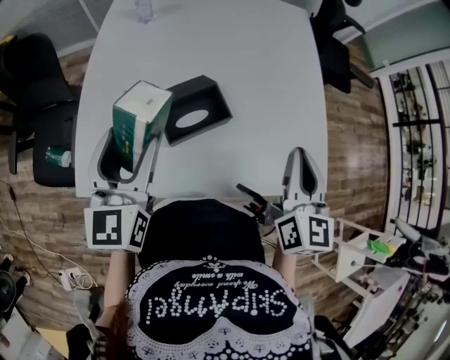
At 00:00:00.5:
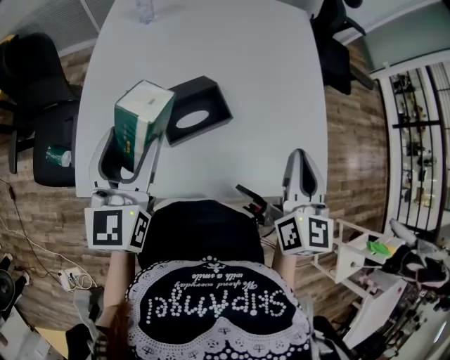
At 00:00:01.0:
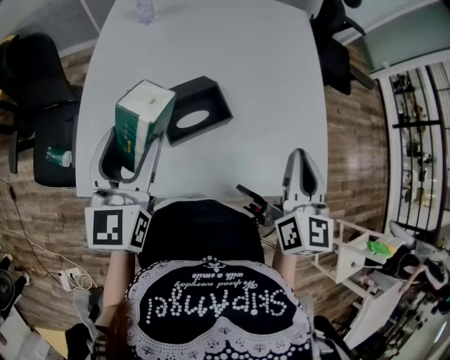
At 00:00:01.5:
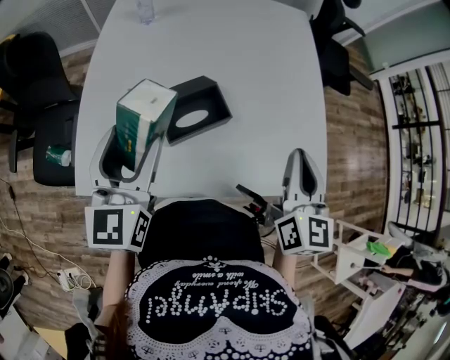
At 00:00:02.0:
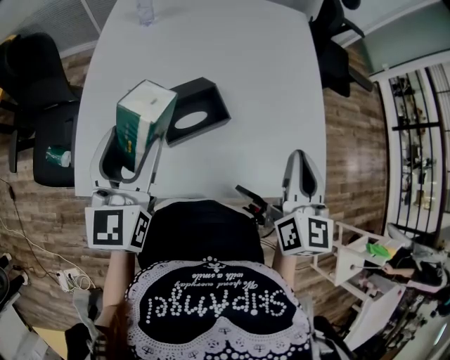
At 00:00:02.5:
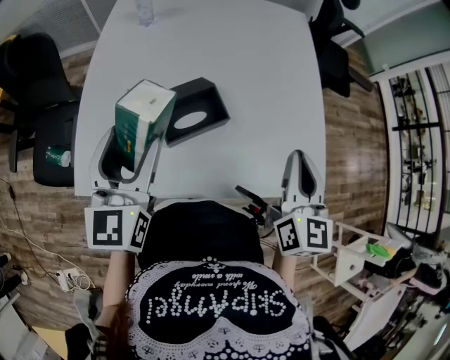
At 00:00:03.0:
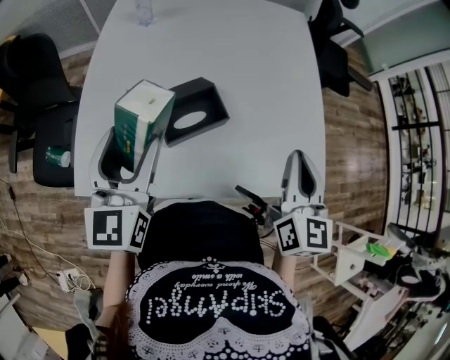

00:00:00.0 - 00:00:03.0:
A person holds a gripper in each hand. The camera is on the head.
00:00:00.0 - 00:00:03.0: Both grippers stay put.

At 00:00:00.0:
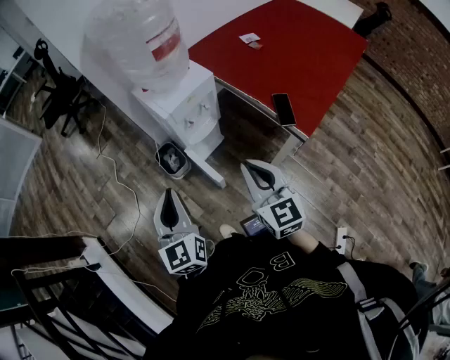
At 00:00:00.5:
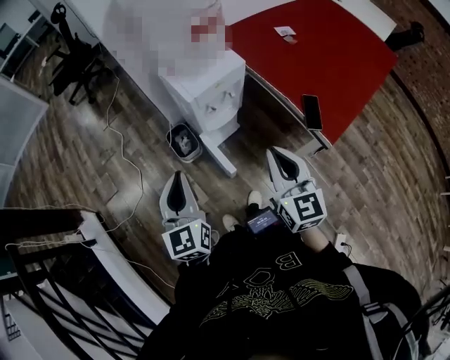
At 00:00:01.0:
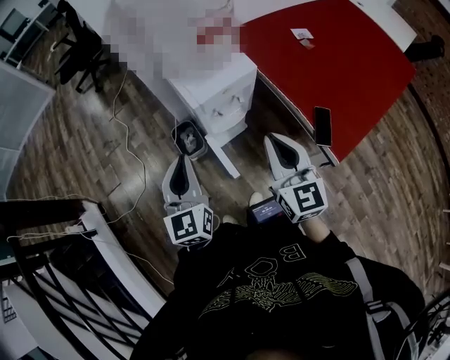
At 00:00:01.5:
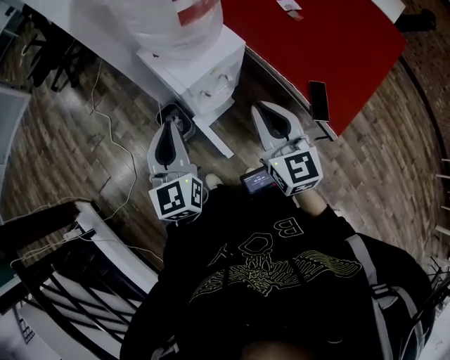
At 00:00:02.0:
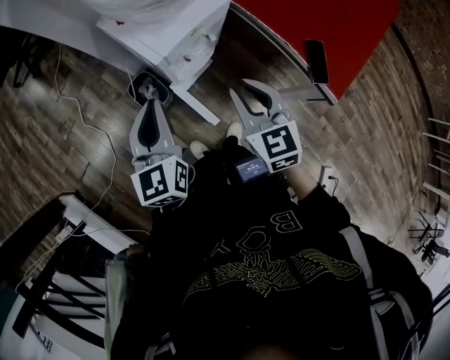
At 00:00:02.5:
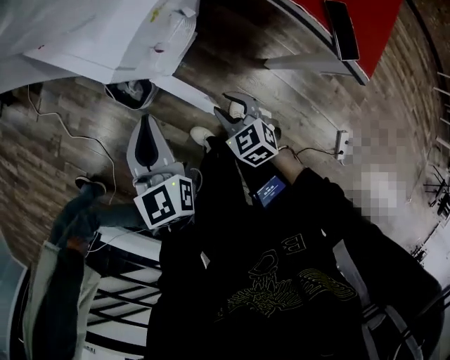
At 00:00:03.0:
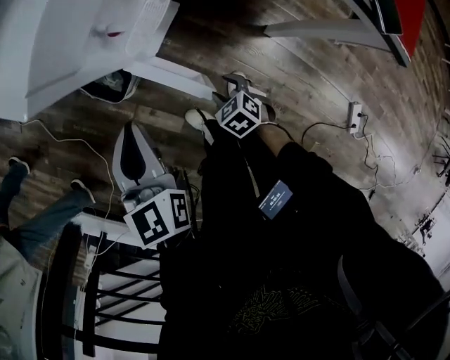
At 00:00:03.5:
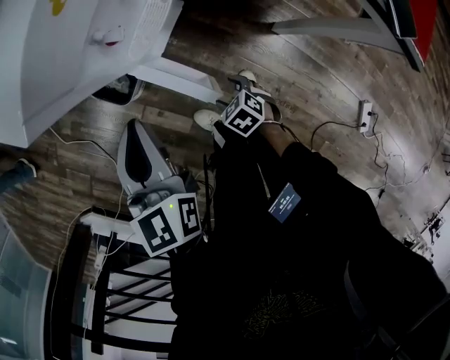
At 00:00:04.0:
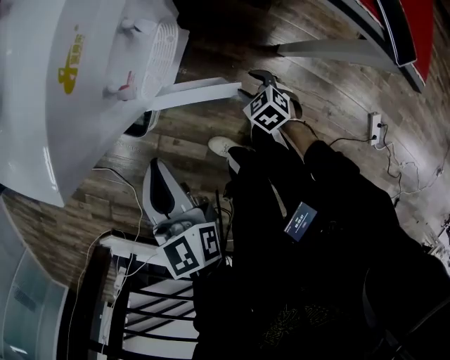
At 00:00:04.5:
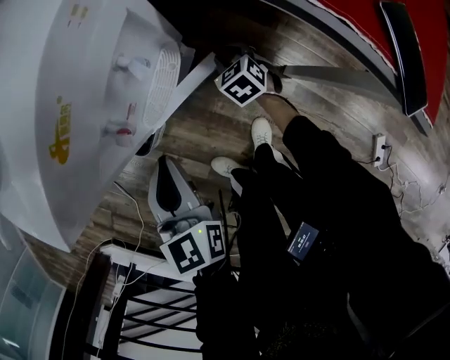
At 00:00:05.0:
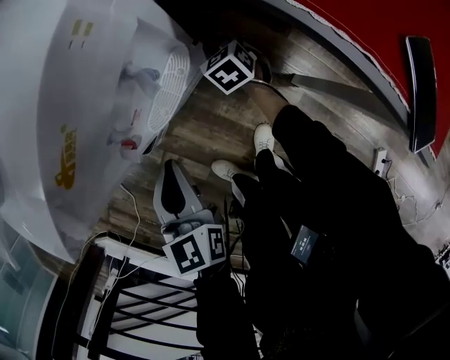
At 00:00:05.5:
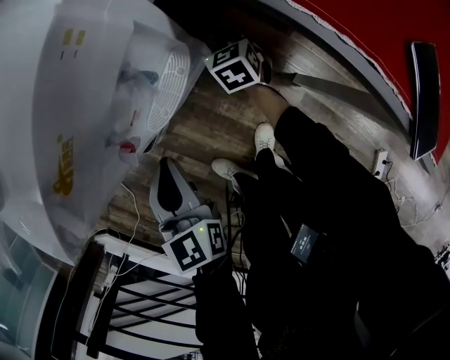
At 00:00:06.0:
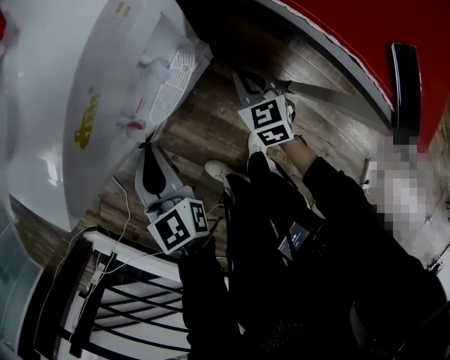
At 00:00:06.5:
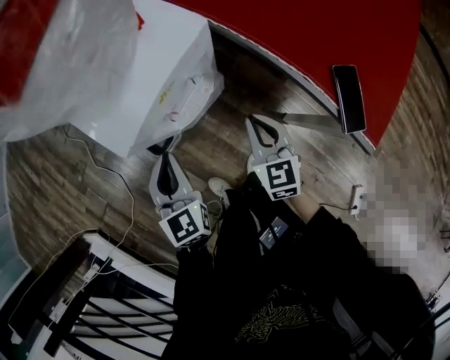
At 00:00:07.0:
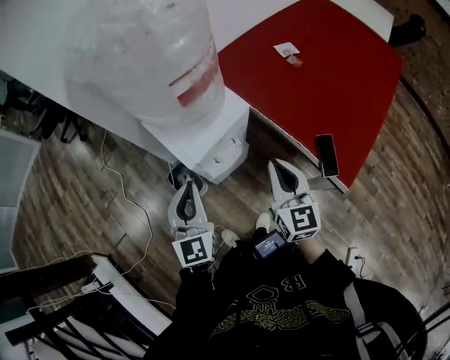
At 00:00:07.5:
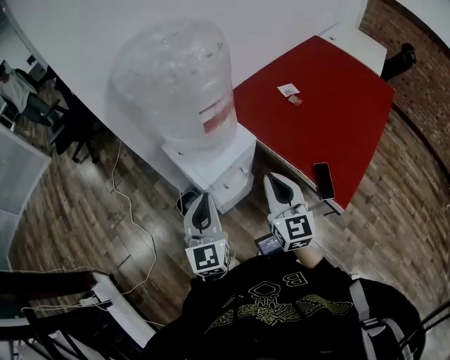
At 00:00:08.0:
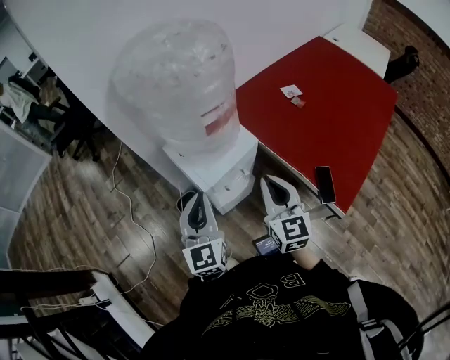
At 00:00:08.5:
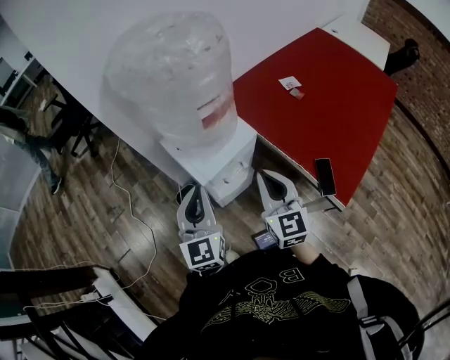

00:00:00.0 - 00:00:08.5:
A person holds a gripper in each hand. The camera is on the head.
00:00:00.0 - 00:00:02.0: The right gripper moves forward and downward, some 25 cm. The left gripper is displaced forward by roughly 25 cm.
00:00:02.0 - 00:00:04.0: The left gripper is displaced downward by about 25 cm, and turns by roughly 20 degrees; the right gripper travels downward by roughly 50 cm, points its fingers some 40 degrees further downward, and opens.
00:00:04.0 - 00:00:06.5: The right gripper heads upward, covering roughly 30 cm, tilts its fingers some 40 degrees upward, and closes. The left gripper goes about 10 cm upward.
00:00:06.5 - 00:00:08.5: The two grippers go some 30 cm upward. The right gripper swivels approximately 20 degrees, while the left gripper changes its angle by about 20 degrees.

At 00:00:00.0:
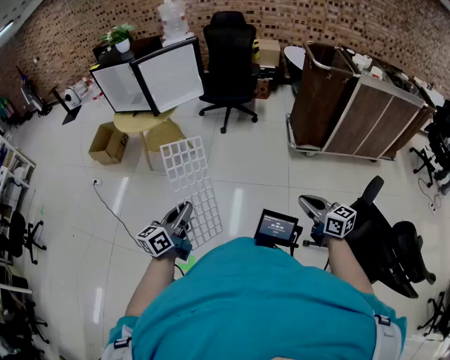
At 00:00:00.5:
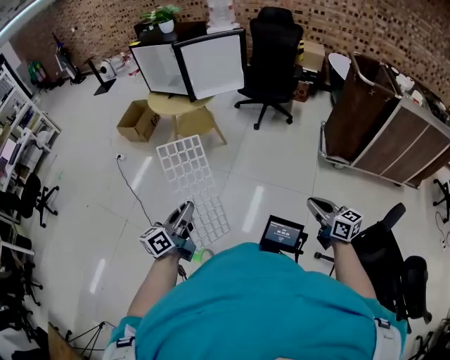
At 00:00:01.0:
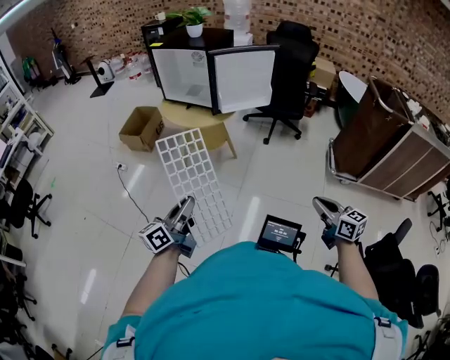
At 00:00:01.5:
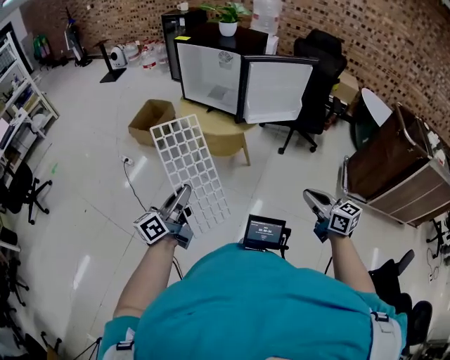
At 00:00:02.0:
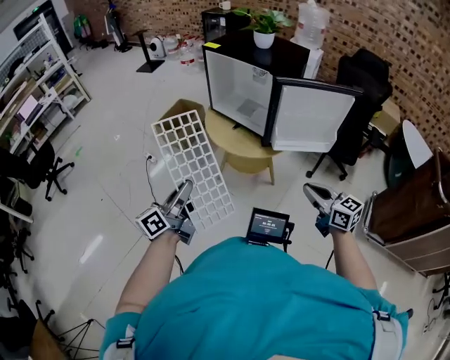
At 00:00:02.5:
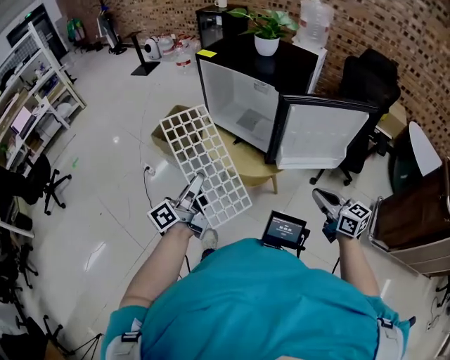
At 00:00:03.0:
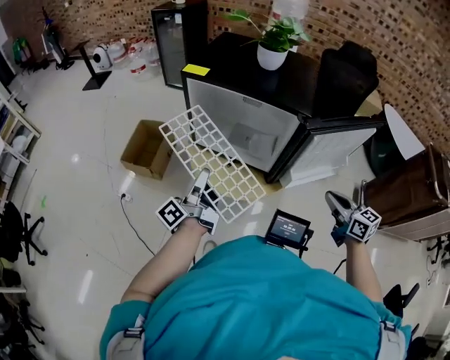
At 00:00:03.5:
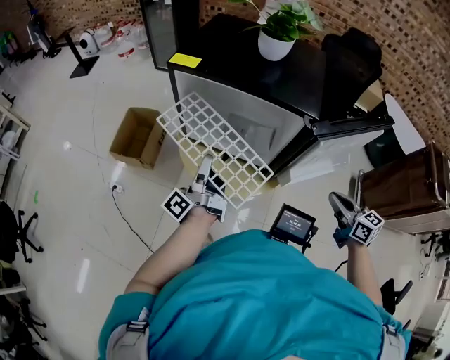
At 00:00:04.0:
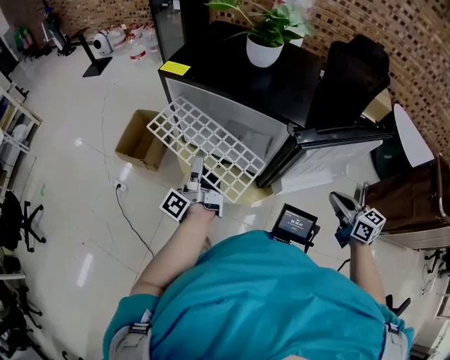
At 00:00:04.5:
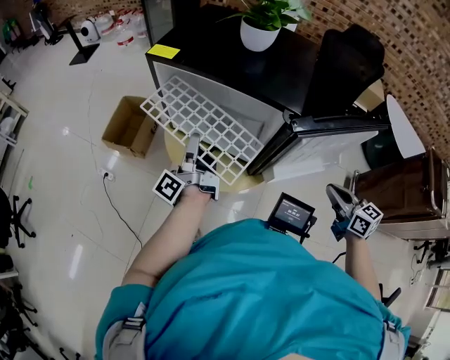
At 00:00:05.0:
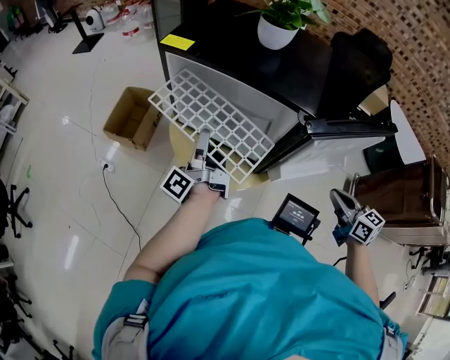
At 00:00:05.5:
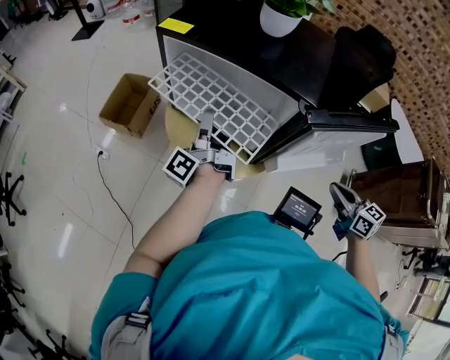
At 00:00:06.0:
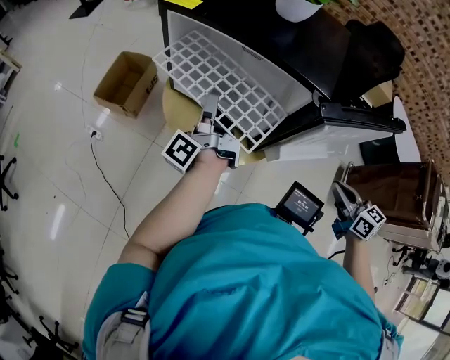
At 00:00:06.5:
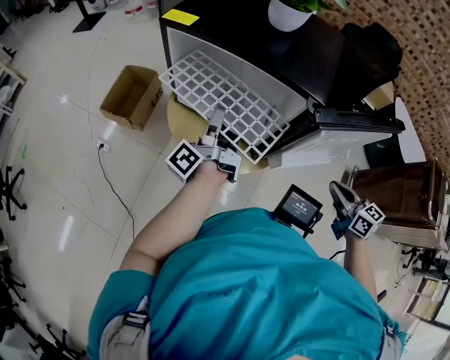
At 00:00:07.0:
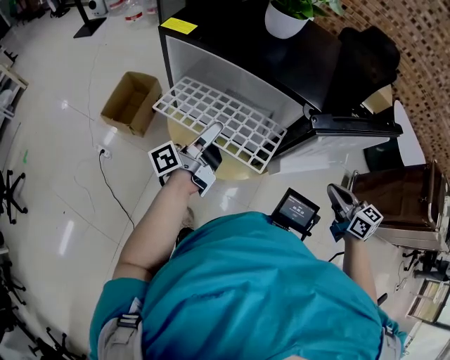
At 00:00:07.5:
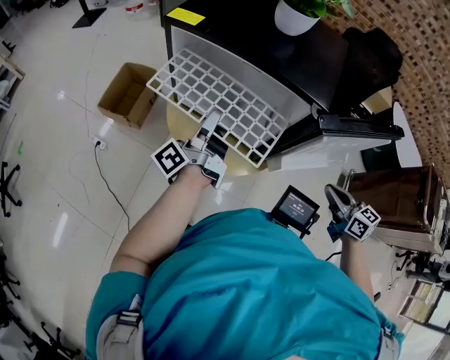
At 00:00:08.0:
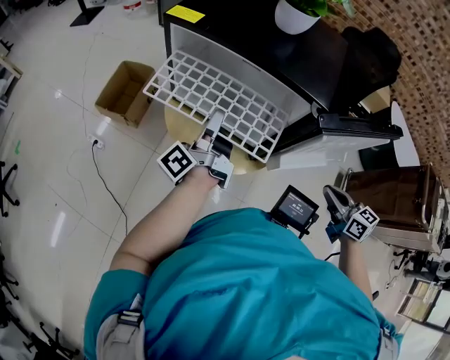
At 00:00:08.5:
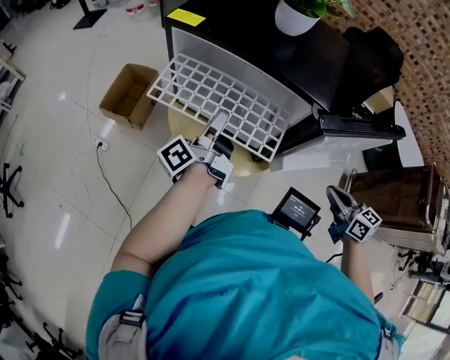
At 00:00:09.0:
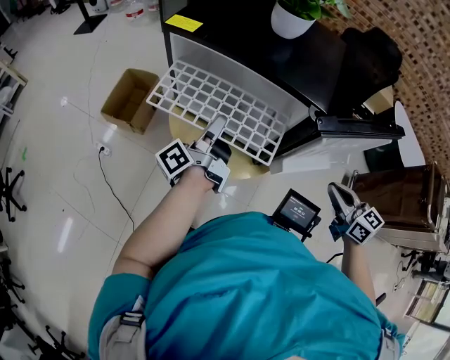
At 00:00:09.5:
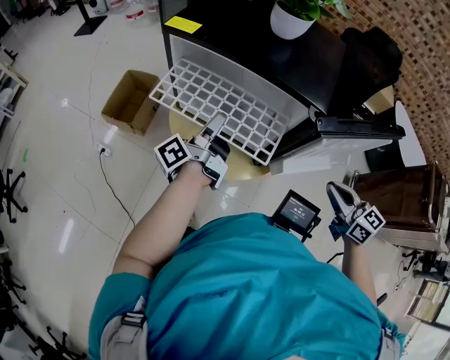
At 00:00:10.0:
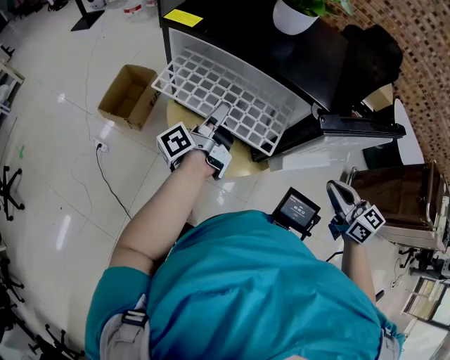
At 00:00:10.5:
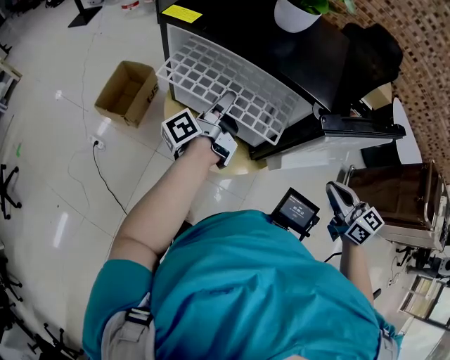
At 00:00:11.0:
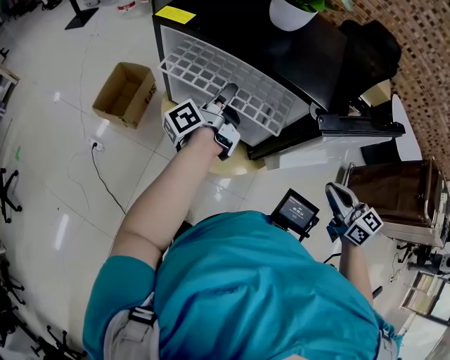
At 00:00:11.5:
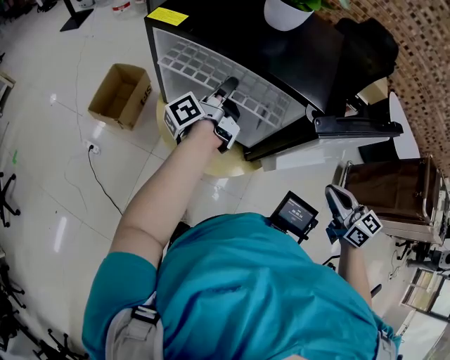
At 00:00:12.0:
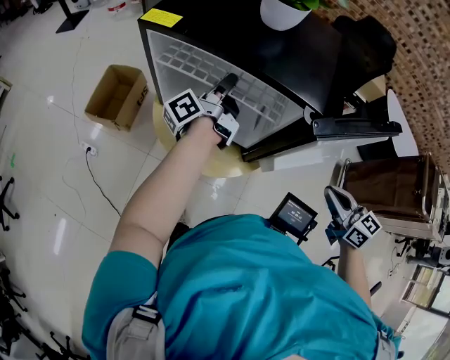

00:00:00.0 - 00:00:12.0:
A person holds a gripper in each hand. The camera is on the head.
00:00:00.0 - 00:00:02.0: Both grippers are carried forward and to the left, about 50 cm. The left gripper turns by roughly 30 degrees; the right gripper changes its angle by about 30 degrees.
00:00:02.0 - 00:00:04.0: The right gripper shifts some 25 cm forward, and rotates roughly 30 degrees. Meanwhile the left gripper moves forward, some 40 cm, and turns by roughly 30 degrees.
00:00:04.0 - 00:00:06.0: The right gripper goes about 5 cm downward. Meanwhile the left gripper moves roughly 5 cm.
00:00:08.0 - 00:00:10.0: The right gripper shifts some 5 cm upward, while the left gripper shifts by some 5 cm, and rotates approximately 20 degrees.
00:00:10.0 - 00:00:12.0: The left gripper is displaced forward and to the right by approximately 10 cm.

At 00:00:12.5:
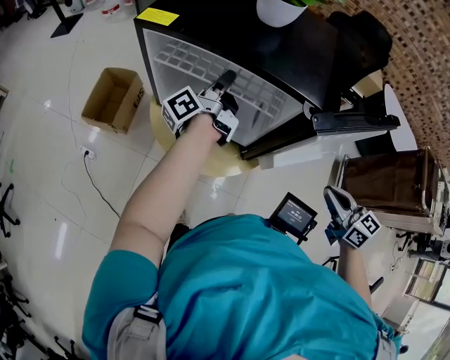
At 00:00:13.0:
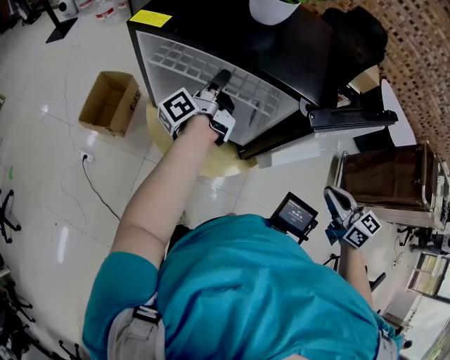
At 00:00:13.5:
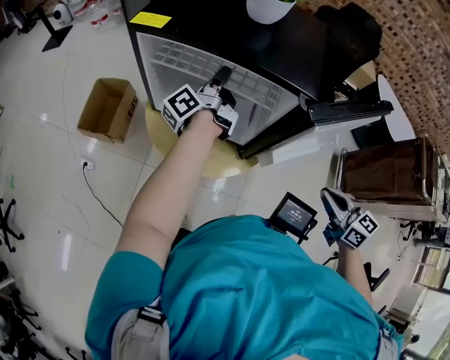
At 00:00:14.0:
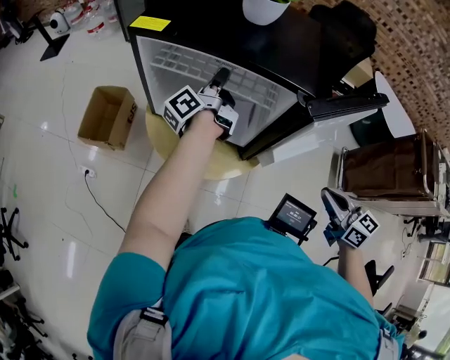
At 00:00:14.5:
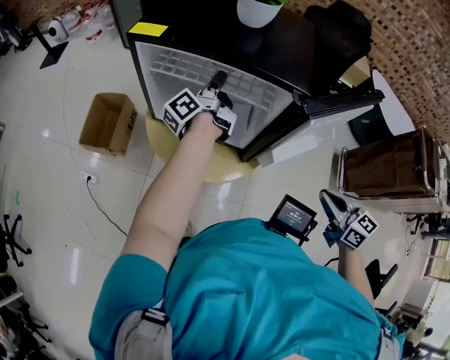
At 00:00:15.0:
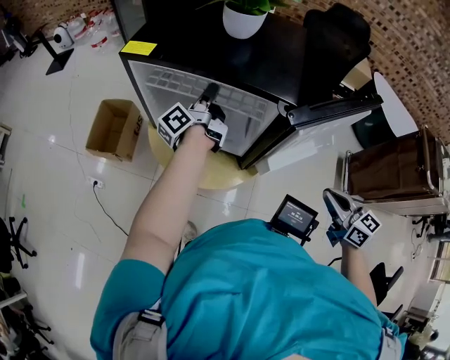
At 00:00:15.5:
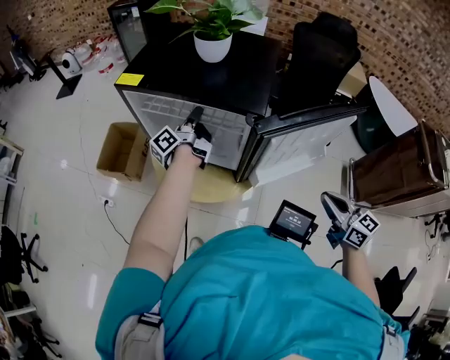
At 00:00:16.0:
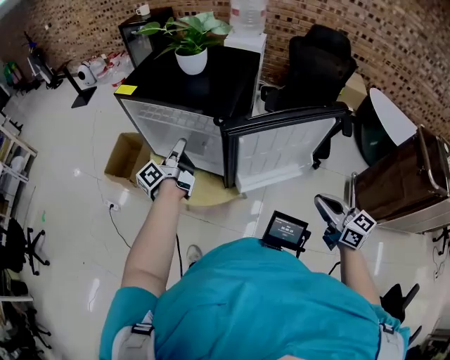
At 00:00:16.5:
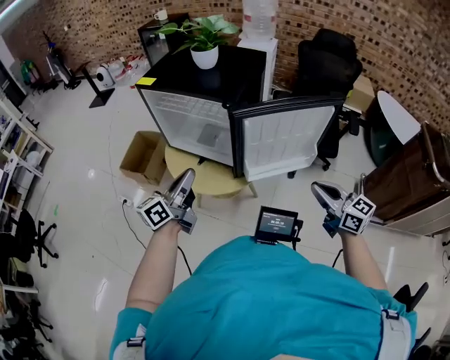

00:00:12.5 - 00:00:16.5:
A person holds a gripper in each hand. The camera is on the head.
00:00:12.5 - 00:00:14.5: The left gripper moves some 5 cm.
00:00:14.5 - 00:00:16.5: The right gripper shifts by roughly 5 cm, while the left gripper is displaced backward by roughly 25 cm, and swivels some 40 degrees.
